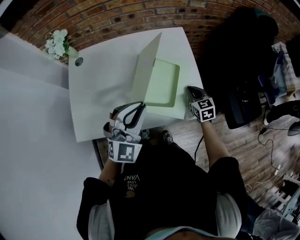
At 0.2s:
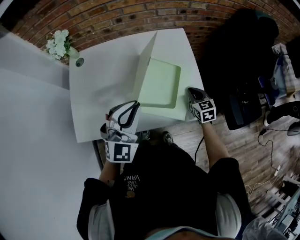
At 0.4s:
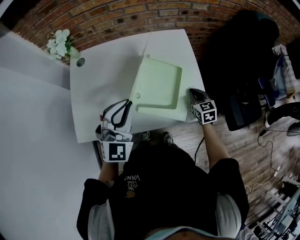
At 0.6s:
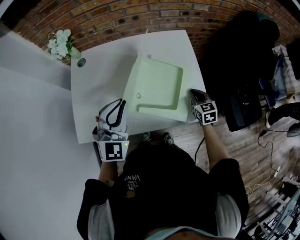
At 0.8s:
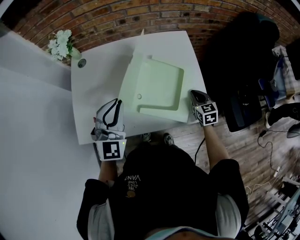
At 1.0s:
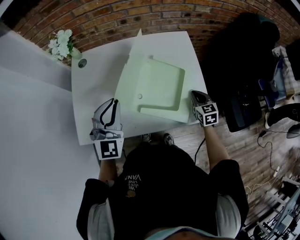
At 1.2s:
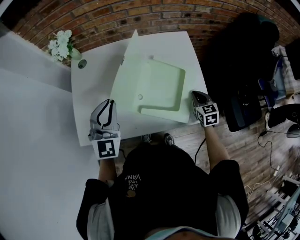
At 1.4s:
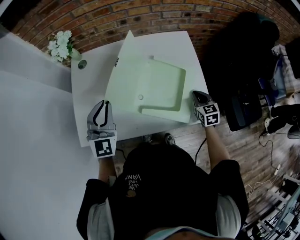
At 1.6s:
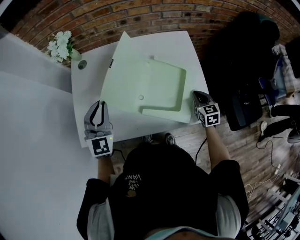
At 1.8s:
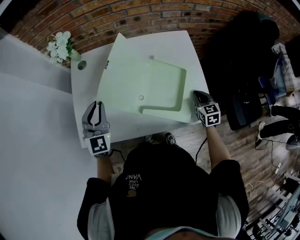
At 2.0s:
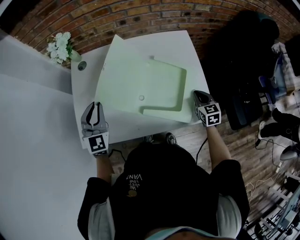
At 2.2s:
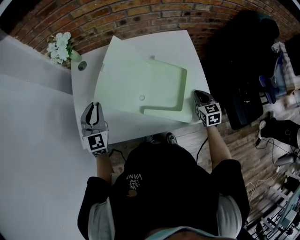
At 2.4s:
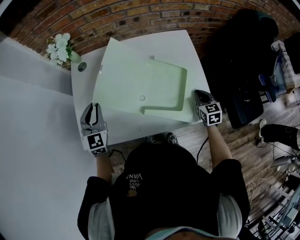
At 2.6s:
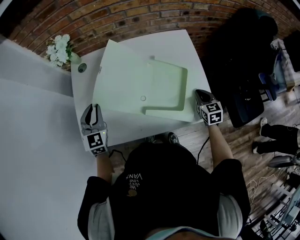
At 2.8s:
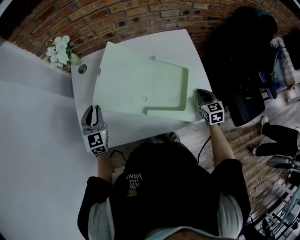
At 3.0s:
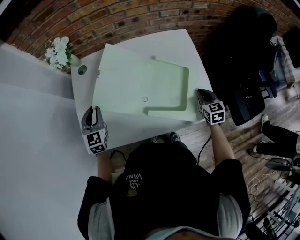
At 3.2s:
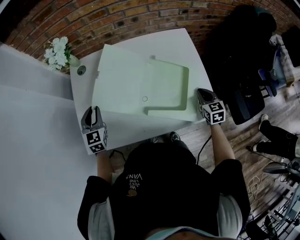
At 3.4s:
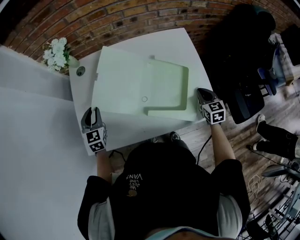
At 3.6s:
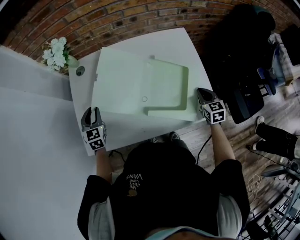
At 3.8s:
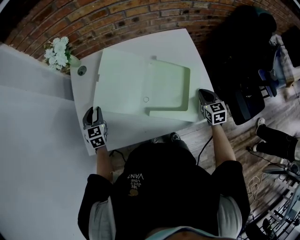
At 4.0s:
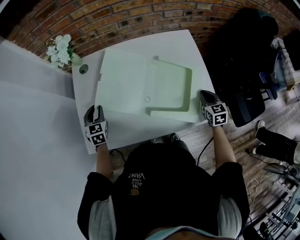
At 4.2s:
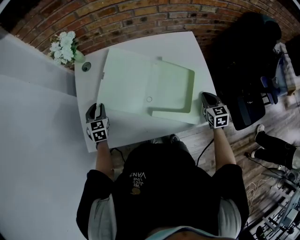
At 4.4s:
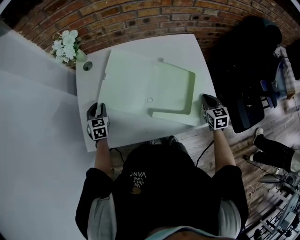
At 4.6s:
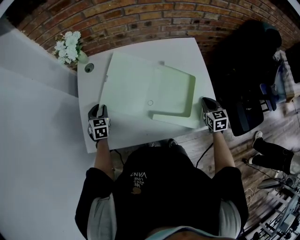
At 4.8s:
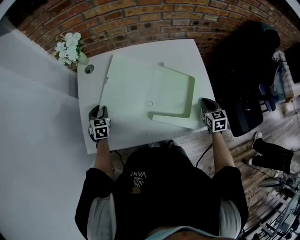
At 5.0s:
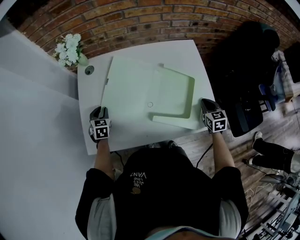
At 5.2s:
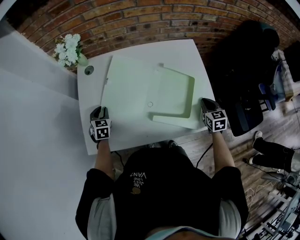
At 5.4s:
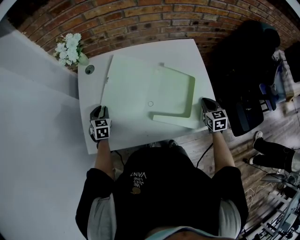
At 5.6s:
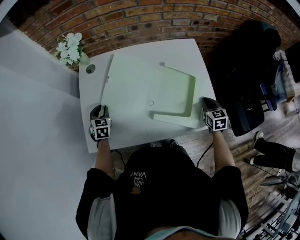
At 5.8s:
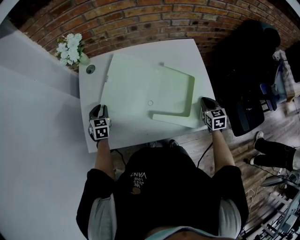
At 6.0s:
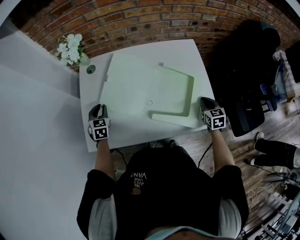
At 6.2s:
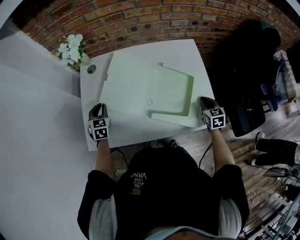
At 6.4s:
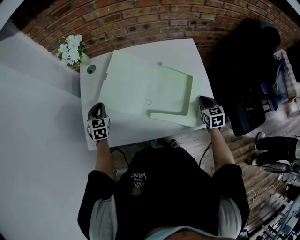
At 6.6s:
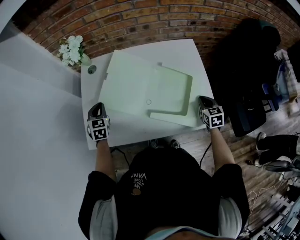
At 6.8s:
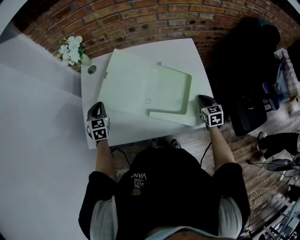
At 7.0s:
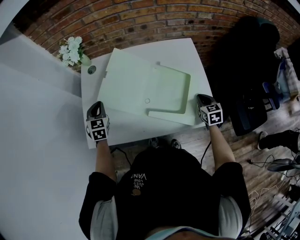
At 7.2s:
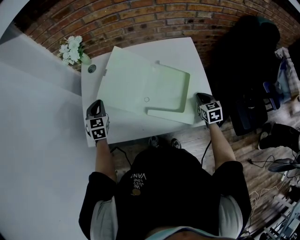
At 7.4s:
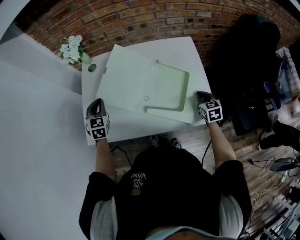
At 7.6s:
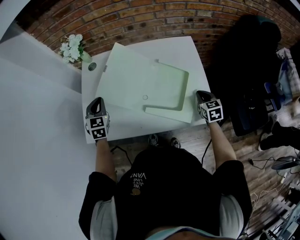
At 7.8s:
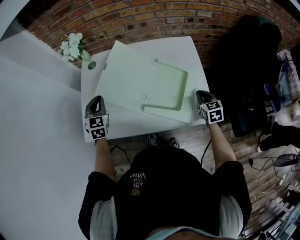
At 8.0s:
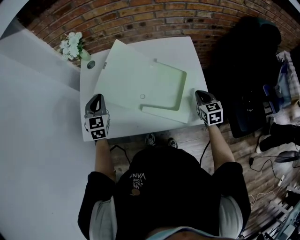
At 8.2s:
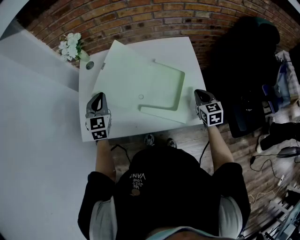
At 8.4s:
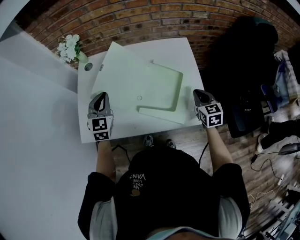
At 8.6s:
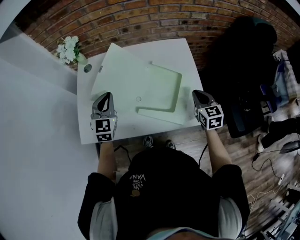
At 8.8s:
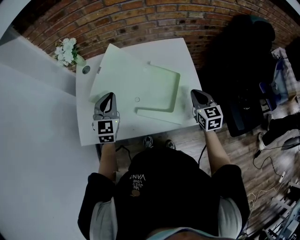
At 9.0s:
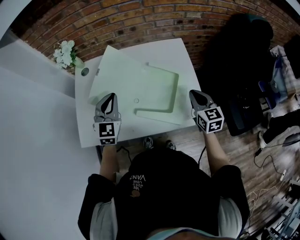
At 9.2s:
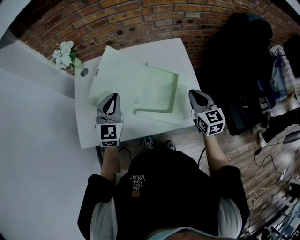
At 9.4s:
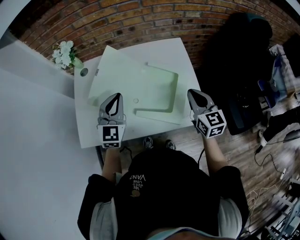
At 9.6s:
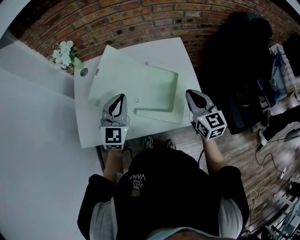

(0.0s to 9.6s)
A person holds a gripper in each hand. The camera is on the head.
0.0s - 1.6s: The left gripper travels to the left by about 20 cm, and turns by approximately 30 degrees.
1.6s - 3.2s: The left gripper heads downward and to the left, covering approximately 15 cm.
3.2s - 4.8s: The left gripper goes roughly 10 cm downward.
4.8s - 6.4s: The left gripper travels upward by some 5 cm, and closes.
6.4s - 8.0s: The left gripper shifts some 10 cm upward and to the right.
8.0s - 9.6s: The left gripper travels to the right and upward by roughly 15 cm, and rotates roughly 20 degrees, while the right gripper is displaced upward by some 15 cm, and rotates approximately 20 degrees.

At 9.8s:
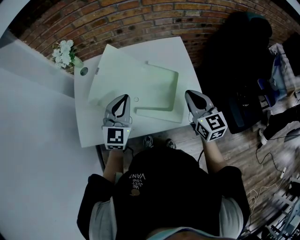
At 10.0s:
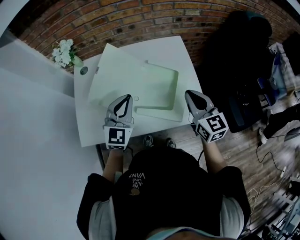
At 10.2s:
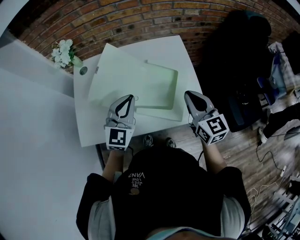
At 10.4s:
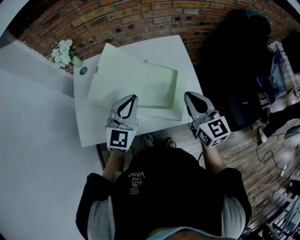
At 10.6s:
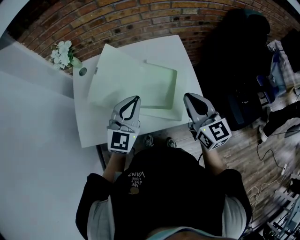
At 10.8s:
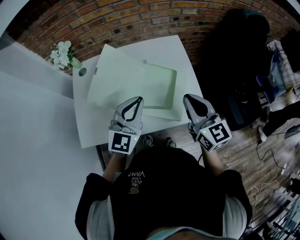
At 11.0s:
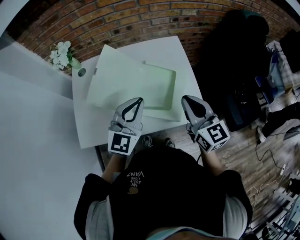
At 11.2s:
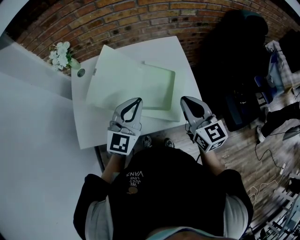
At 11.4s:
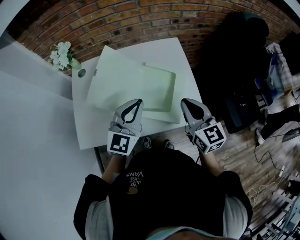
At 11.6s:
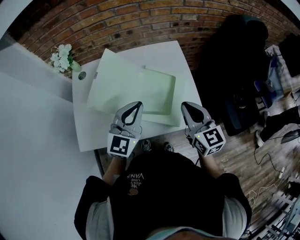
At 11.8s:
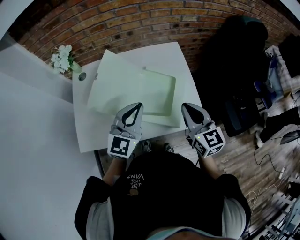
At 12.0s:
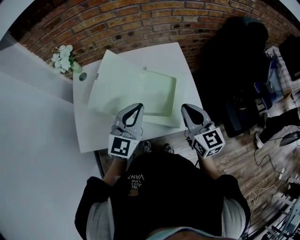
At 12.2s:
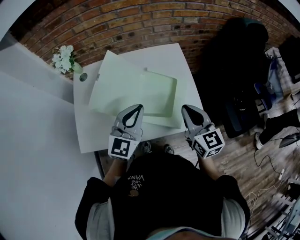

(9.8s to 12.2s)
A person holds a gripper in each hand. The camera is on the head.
9.8s - 11.0s: The left gripper goes about 5 cm to the right. Meanwhile the right gripper changes place by approximately 5 cm.
11.0s - 12.2s: There are only small adjustments of the grippers.

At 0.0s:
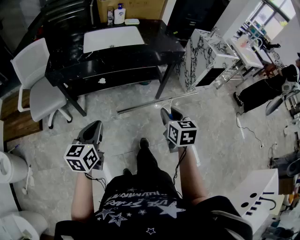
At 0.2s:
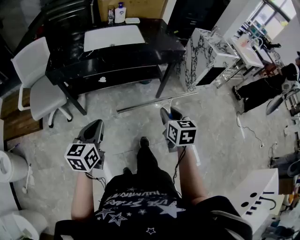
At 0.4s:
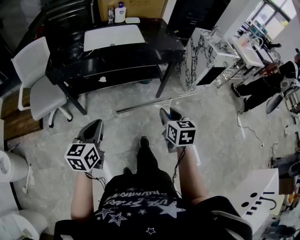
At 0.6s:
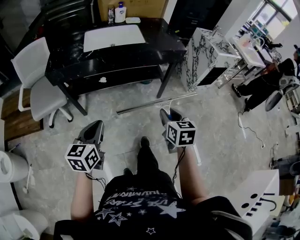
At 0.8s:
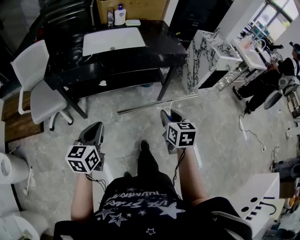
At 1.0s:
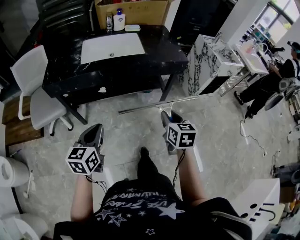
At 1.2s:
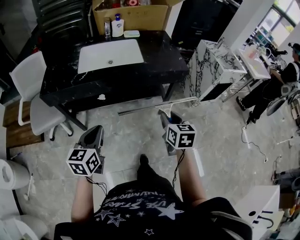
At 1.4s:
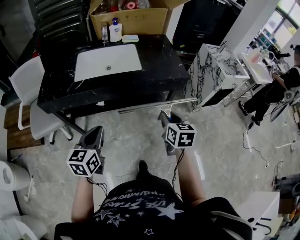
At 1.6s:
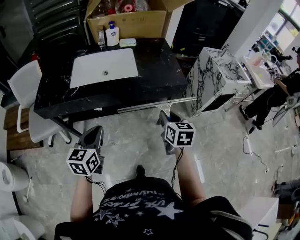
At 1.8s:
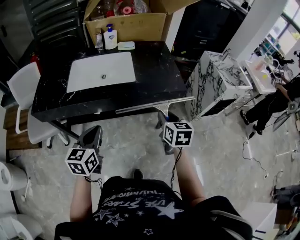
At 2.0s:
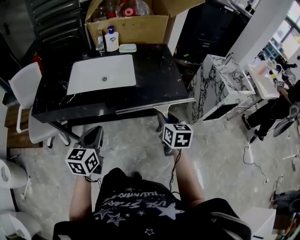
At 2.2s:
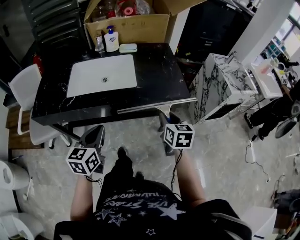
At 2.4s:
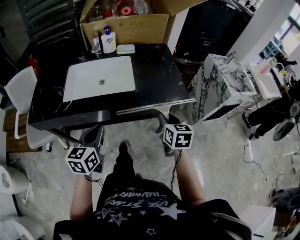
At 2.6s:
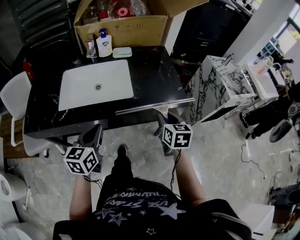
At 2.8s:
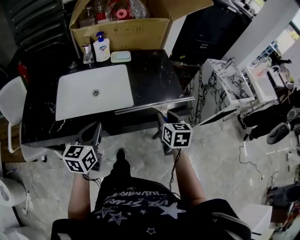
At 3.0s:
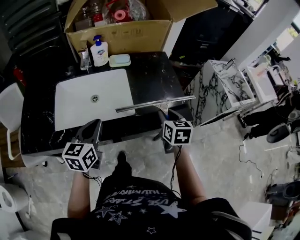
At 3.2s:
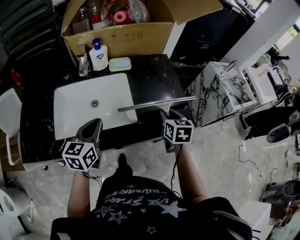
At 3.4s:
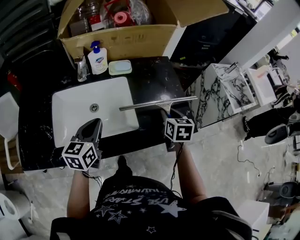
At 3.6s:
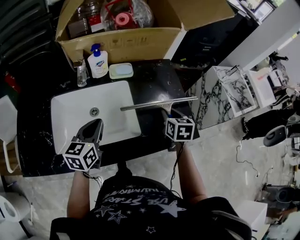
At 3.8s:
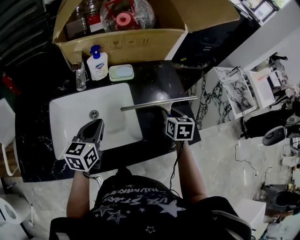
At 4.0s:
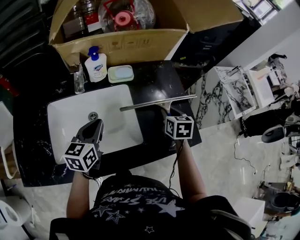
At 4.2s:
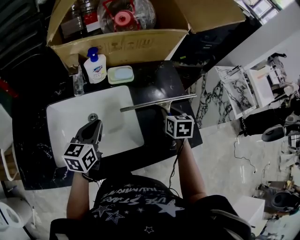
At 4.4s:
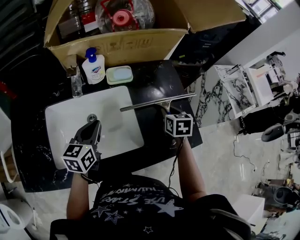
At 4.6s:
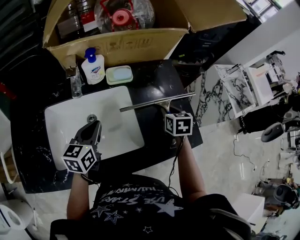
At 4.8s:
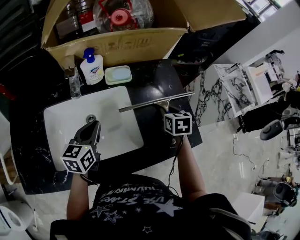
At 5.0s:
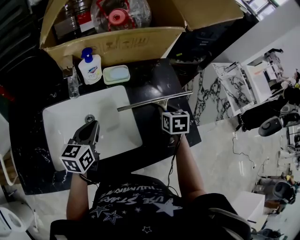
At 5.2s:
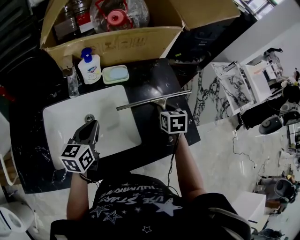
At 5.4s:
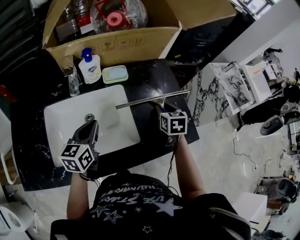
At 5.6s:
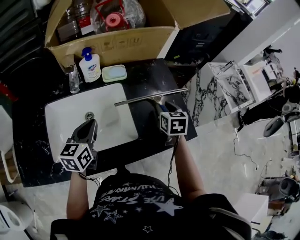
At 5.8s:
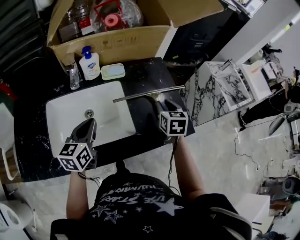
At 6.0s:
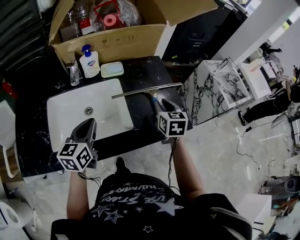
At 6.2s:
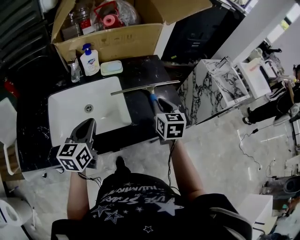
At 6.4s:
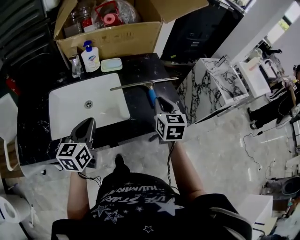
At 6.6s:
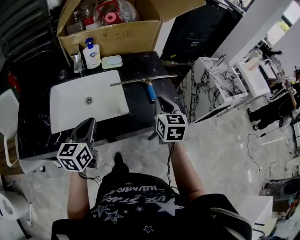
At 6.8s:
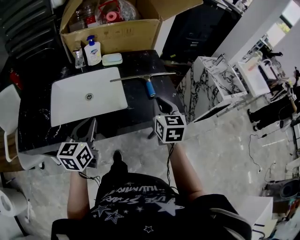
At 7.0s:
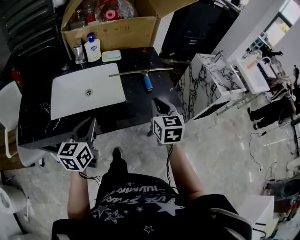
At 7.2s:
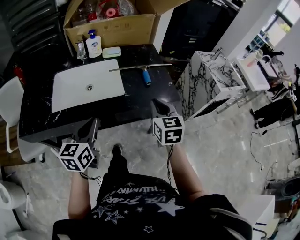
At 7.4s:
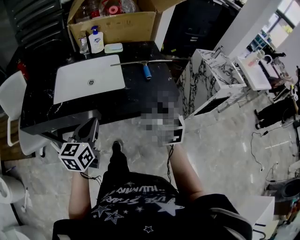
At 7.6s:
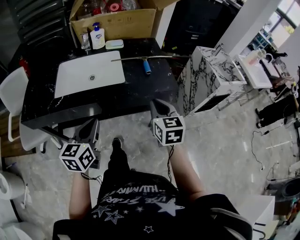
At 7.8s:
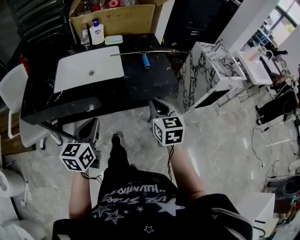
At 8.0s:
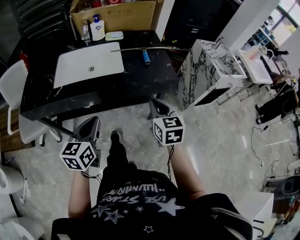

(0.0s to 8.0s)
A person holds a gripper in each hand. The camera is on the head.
0.0s - 1.6s: The two grippers go approximately 30 cm forward.
1.6s - 3.2s: Both grippers travel together forward, about 35 cm.
3.2s - 4.8s: The right gripper heads forward, covering some 15 cm, while the left gripper moves forward and to the left, some 15 cm.
4.8s - 6.4s: The right gripper heads backward and upward, covering approximately 20 cm, and changes its angle by roughly 30 degrees. Meanwhile the left gripper is displaced backward, upward and to the right by some 20 cm.
6.4s - 8.0s: The grippers both shift backward by about 30 cm.

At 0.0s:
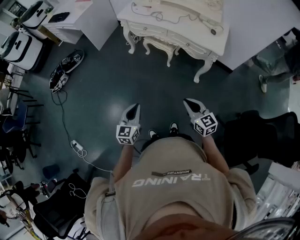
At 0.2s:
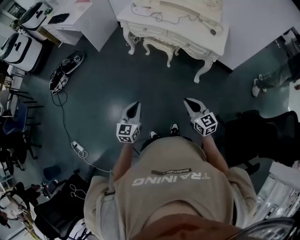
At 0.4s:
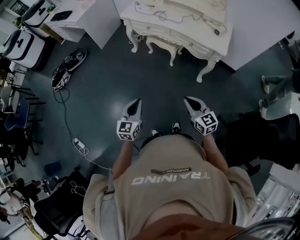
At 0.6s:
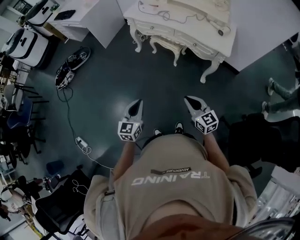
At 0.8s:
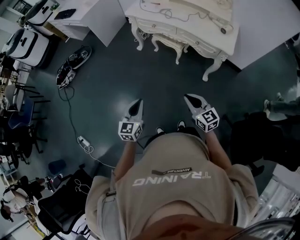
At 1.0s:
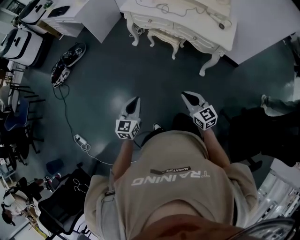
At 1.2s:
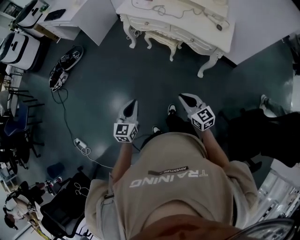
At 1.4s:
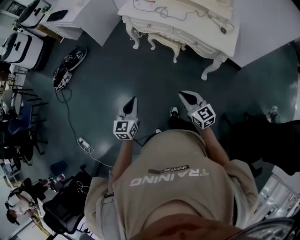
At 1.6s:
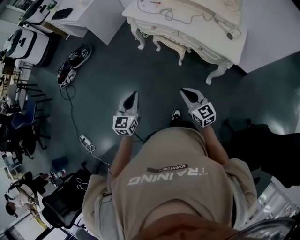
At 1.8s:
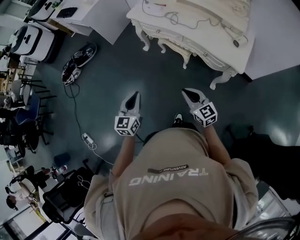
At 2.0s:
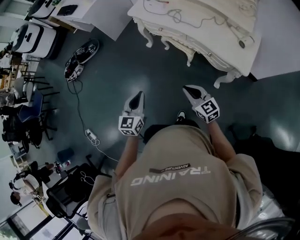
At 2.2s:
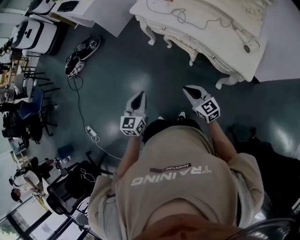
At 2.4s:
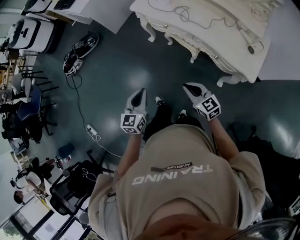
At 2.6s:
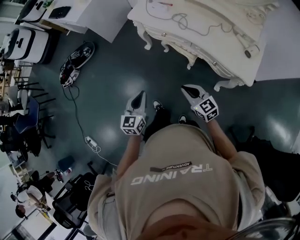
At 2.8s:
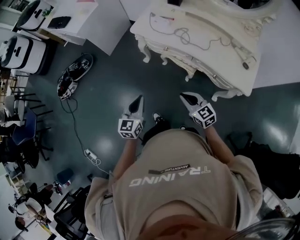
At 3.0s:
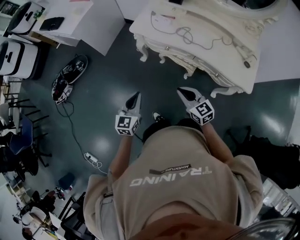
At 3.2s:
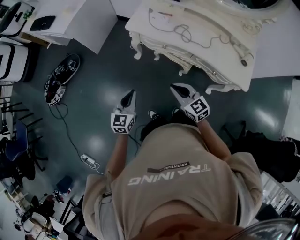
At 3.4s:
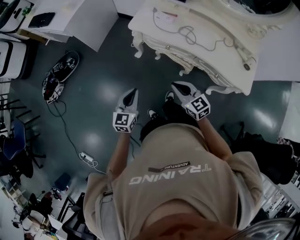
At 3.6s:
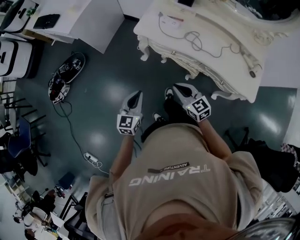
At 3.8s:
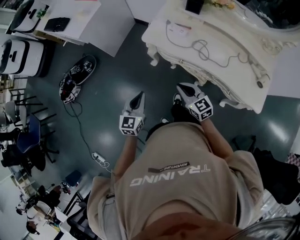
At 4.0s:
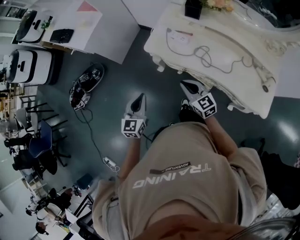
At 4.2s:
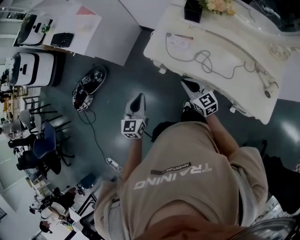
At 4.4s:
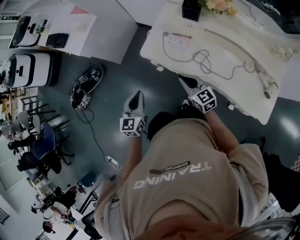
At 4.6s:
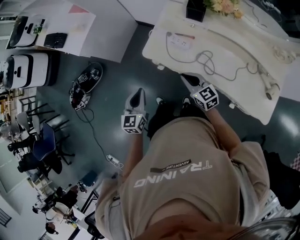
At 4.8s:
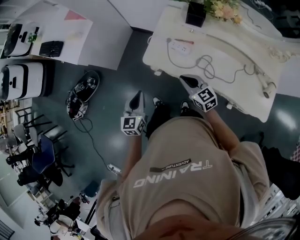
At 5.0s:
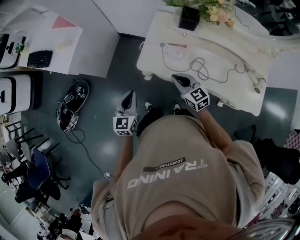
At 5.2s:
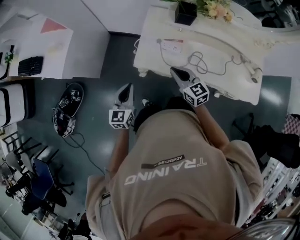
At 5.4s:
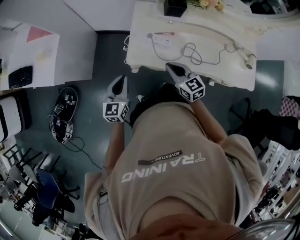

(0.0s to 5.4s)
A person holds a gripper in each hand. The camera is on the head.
0.0s - 1.4s: Both grippers travel together forward, roughly 10 cm.
1.4s - 2.8s: The grippers both shift forward by about 30 cm.
2.8s - 4.0s: The grippers both shift forward by some 25 cm.
4.0s - 5.4s: The two grippers go approximately 25 cm forward. The left gripper changes its angle by roughly 20 degrees. The right gripper rotates approximately 20 degrees.
